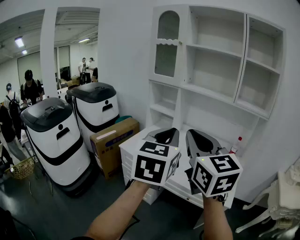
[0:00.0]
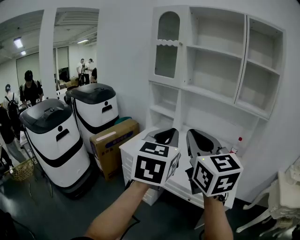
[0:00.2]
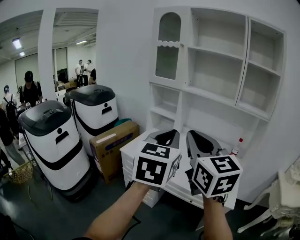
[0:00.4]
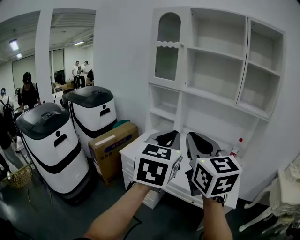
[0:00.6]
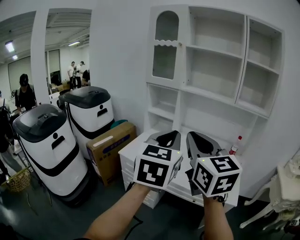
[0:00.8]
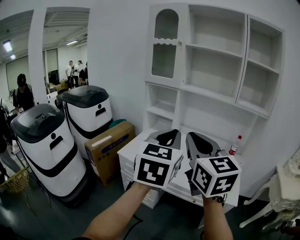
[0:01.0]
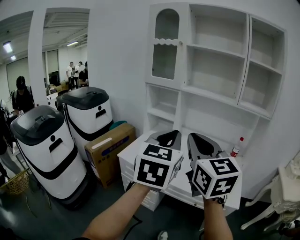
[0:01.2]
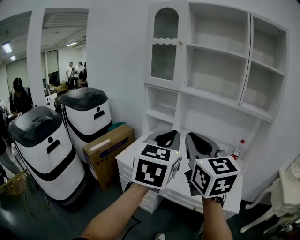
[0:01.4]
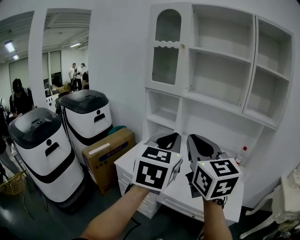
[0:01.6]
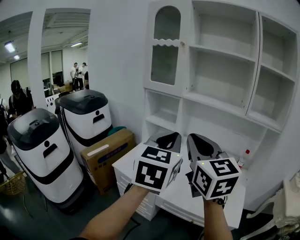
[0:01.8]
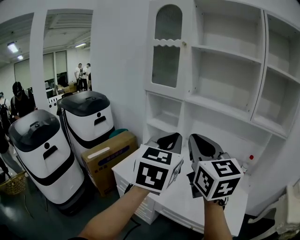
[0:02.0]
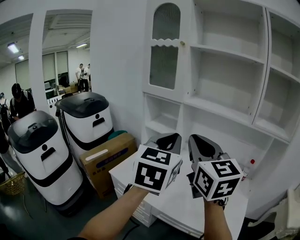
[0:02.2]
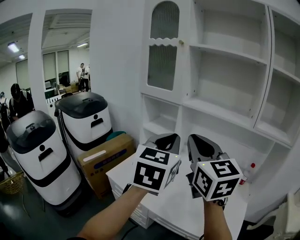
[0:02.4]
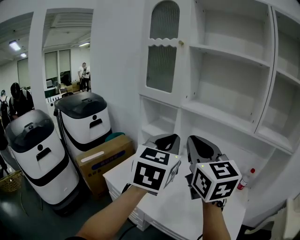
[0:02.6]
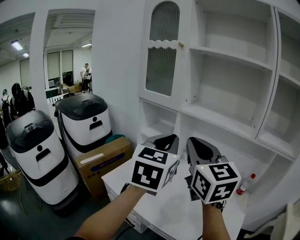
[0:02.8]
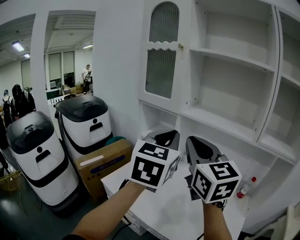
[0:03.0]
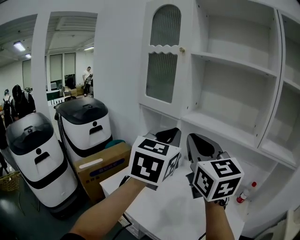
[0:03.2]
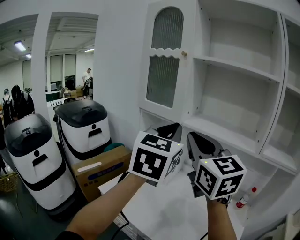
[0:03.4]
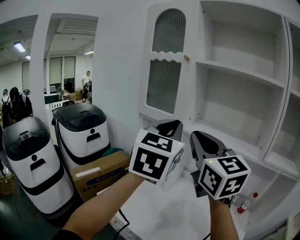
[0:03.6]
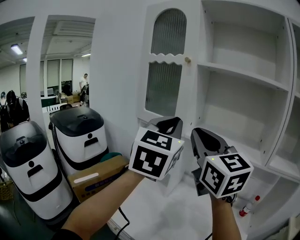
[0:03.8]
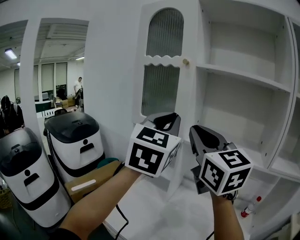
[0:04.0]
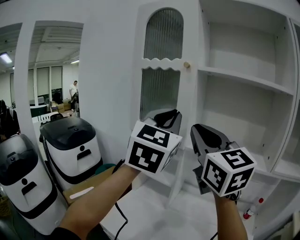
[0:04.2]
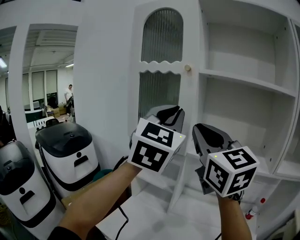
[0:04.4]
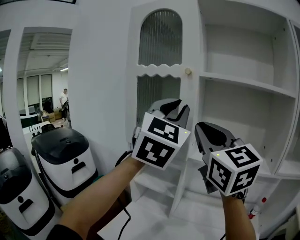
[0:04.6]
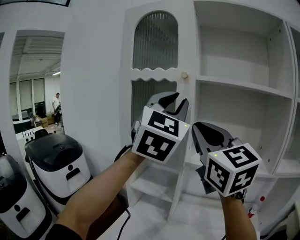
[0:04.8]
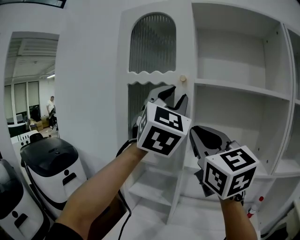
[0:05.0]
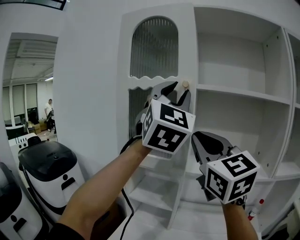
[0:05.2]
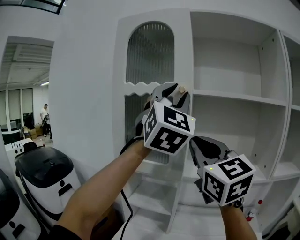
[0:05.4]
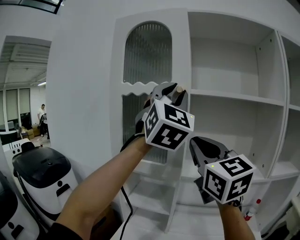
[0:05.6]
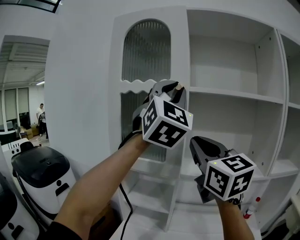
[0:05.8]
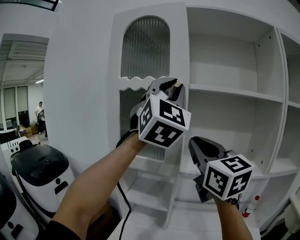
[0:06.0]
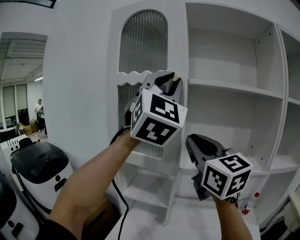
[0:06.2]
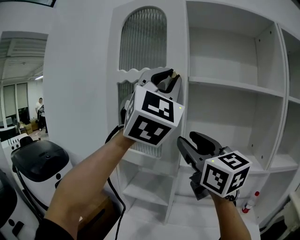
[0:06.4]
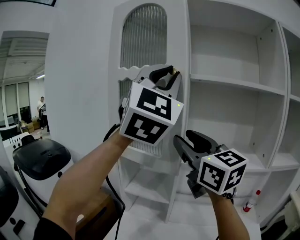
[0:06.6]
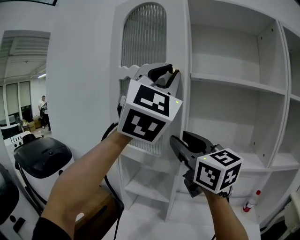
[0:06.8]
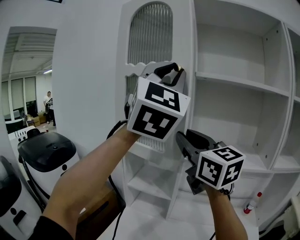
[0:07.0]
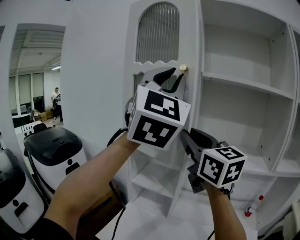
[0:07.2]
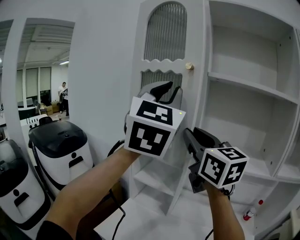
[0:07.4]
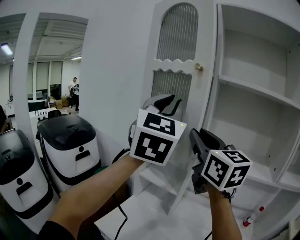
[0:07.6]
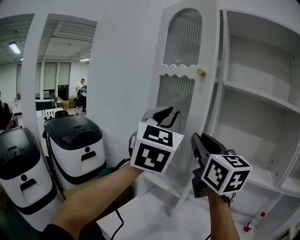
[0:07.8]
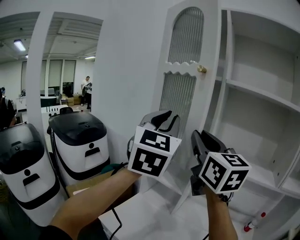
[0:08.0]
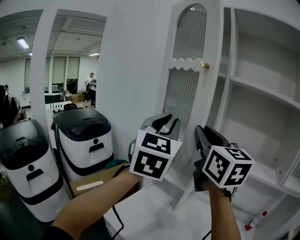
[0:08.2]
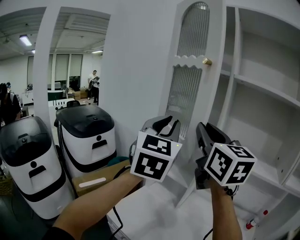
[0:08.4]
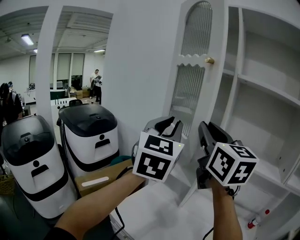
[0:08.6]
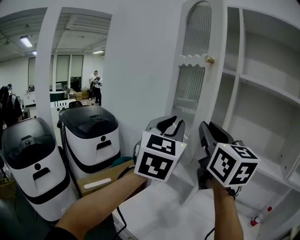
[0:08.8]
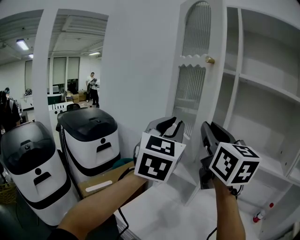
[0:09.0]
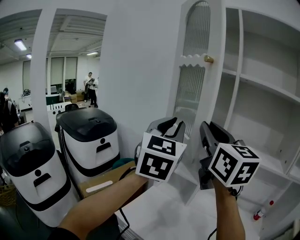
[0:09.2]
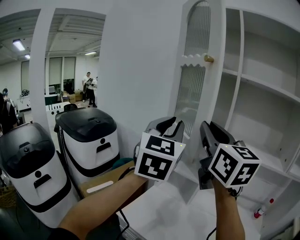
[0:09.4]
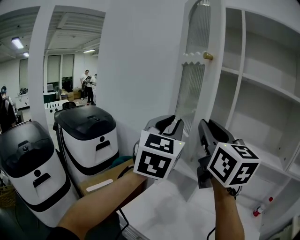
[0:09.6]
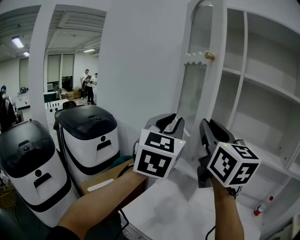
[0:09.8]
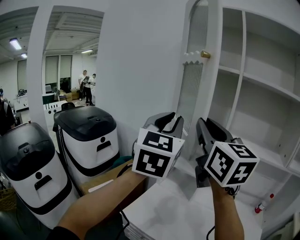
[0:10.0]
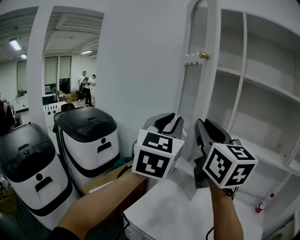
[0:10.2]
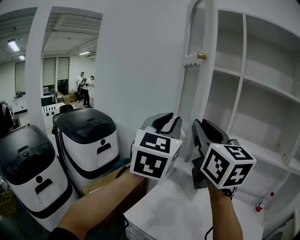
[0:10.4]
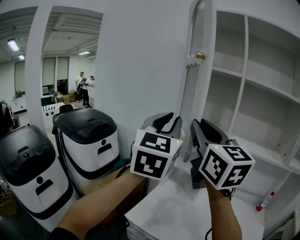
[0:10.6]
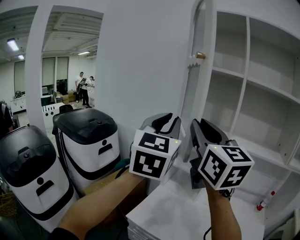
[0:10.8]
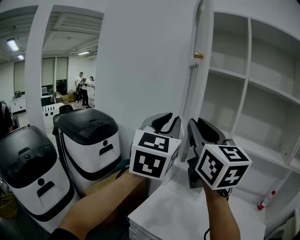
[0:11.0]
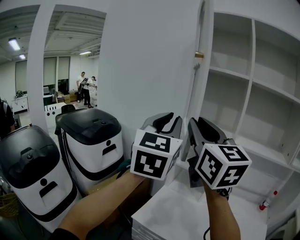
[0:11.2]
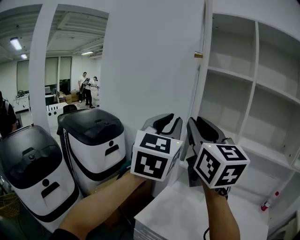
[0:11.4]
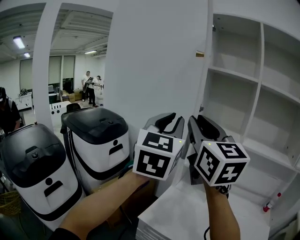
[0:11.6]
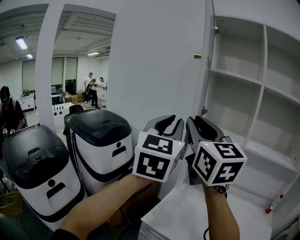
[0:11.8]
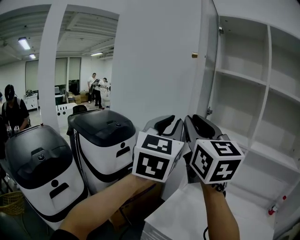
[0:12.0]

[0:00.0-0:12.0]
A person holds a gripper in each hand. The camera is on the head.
0:00.0 to 0:01.6: Both grippers travel together forward, about 10 cm.
0:01.6 to 0:03.0: The grippers both shift forward by approximately 20 cm.
0:03.0 to 0:04.4: Both grippers travel together forward and upward, some 20 cm. The left gripper swivels approximately 30 degrees.
0:04.4 to 0:06.0: The right gripper is displaced forward by some 5 cm. Meanwhile the left gripper travels upward and forward by approximately 15 cm, and turns by roughly 20 degrees.
0:06.0 to 0:07.6: The right gripper moves to the left, about 5 cm, and opens and closes again. The left gripper goes about 15 cm downward, to the left and backward, and turns by roughly 30 degrees.
0:07.6 to 0:09.0: The right gripper travels to the left by about 5 cm, while the left gripper is displaced downward and to the left by approximately 10 cm.
0:09.0 to 0:10.4: The grippers both shift to the left by roughly 10 cm.
0:10.4 to 0:12.0: Both grippers move to the left, roughly 15 cm.

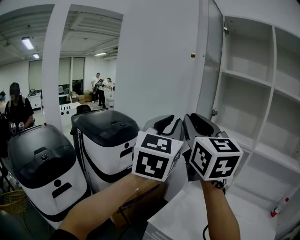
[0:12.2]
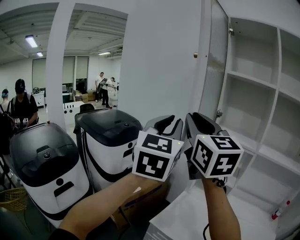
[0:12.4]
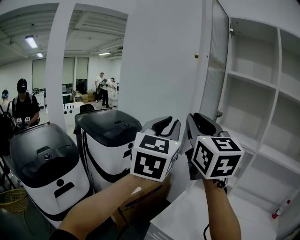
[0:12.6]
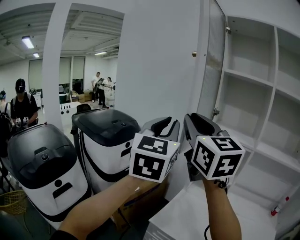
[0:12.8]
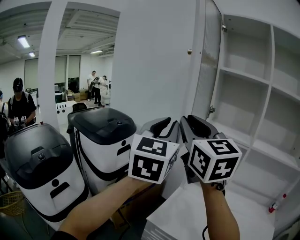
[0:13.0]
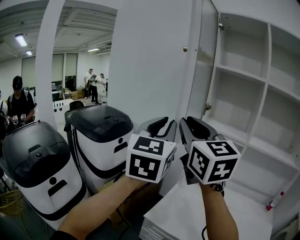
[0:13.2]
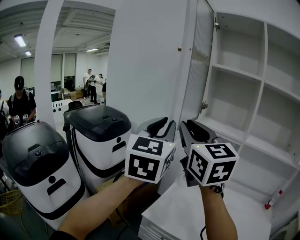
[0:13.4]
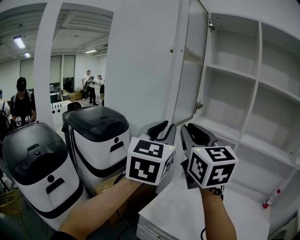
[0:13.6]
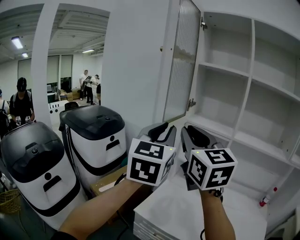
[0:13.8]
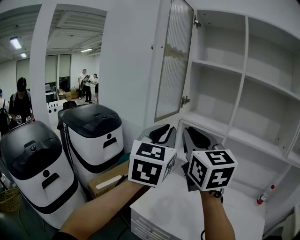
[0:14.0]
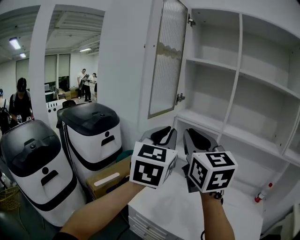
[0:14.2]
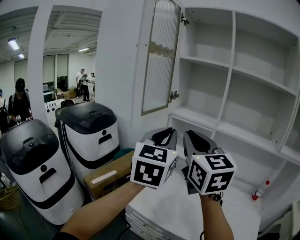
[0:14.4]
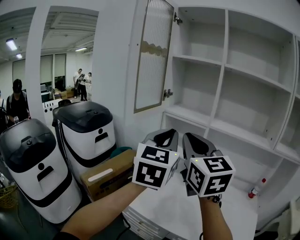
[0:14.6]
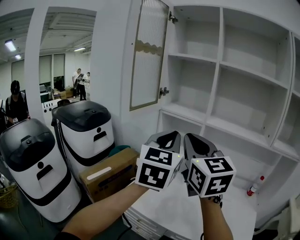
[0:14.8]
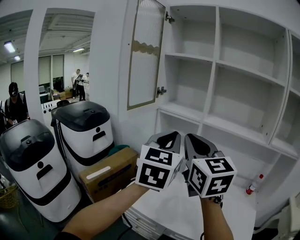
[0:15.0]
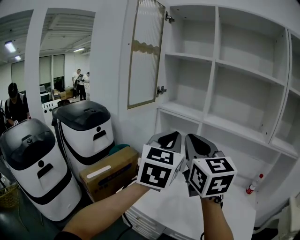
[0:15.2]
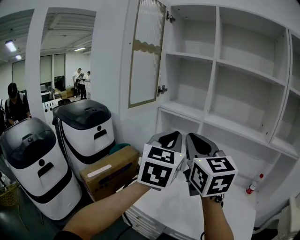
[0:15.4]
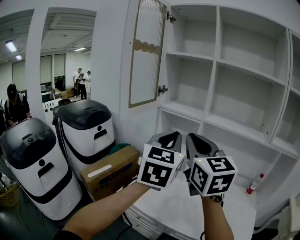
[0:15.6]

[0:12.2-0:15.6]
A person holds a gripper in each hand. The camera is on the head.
0:12.2 to 0:13.8: The left gripper shifts some 5 cm to the right. The right gripper travels to the right, backward and downward by about 10 cm.
0:13.8 to 0:15.6: The two grippers go roughly 20 cm to the right and backward.

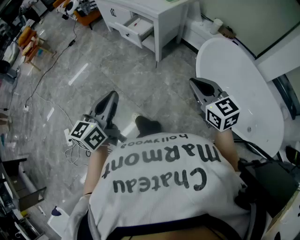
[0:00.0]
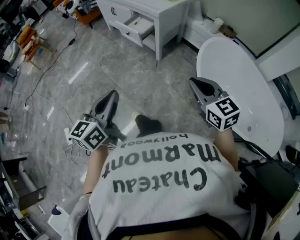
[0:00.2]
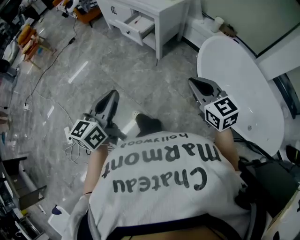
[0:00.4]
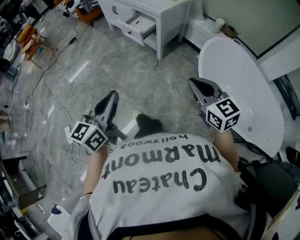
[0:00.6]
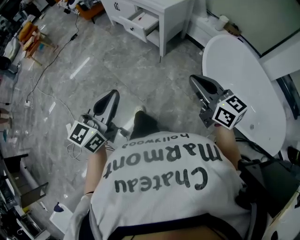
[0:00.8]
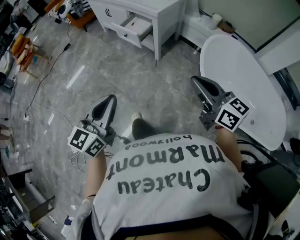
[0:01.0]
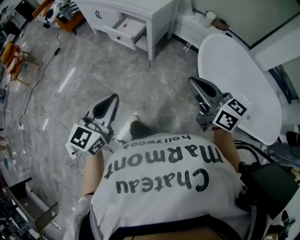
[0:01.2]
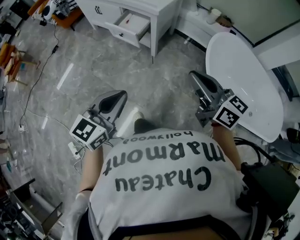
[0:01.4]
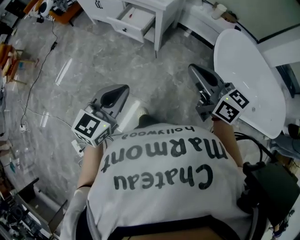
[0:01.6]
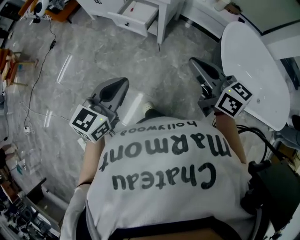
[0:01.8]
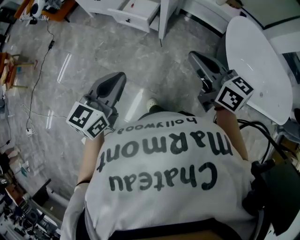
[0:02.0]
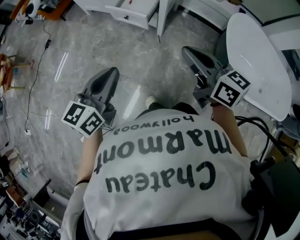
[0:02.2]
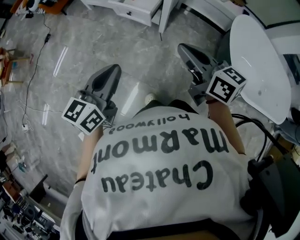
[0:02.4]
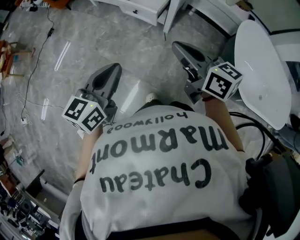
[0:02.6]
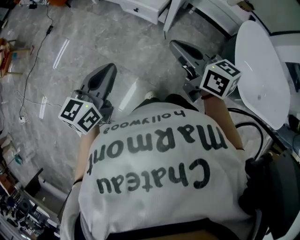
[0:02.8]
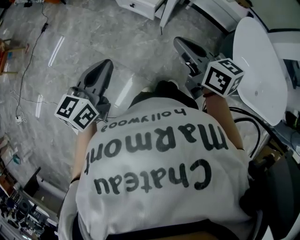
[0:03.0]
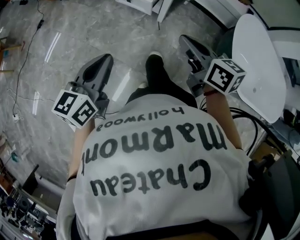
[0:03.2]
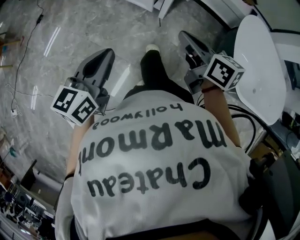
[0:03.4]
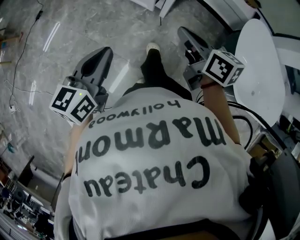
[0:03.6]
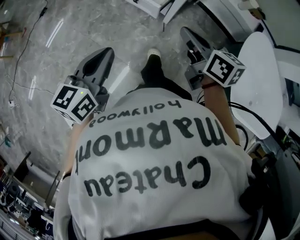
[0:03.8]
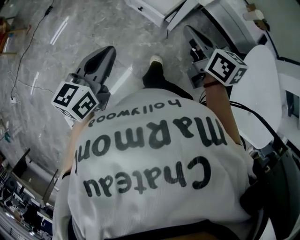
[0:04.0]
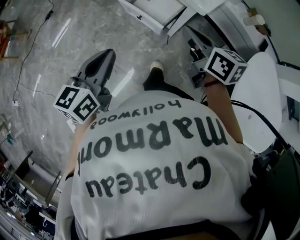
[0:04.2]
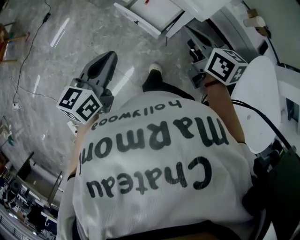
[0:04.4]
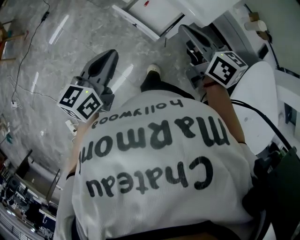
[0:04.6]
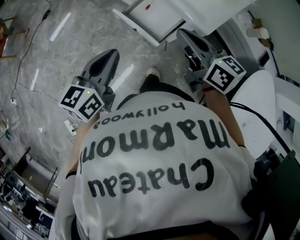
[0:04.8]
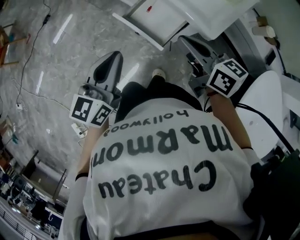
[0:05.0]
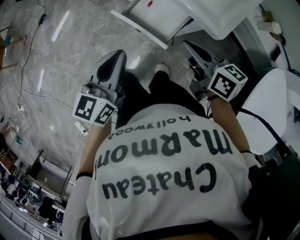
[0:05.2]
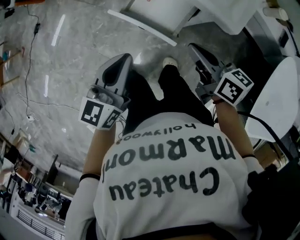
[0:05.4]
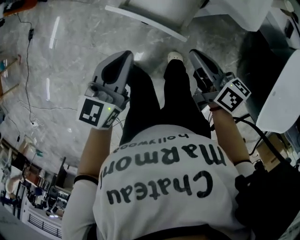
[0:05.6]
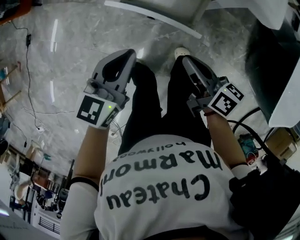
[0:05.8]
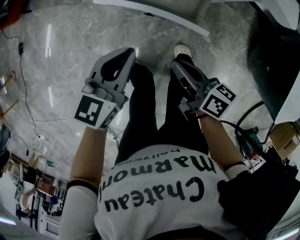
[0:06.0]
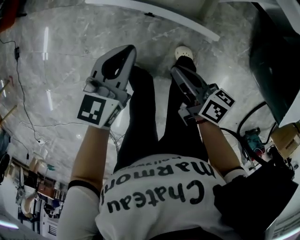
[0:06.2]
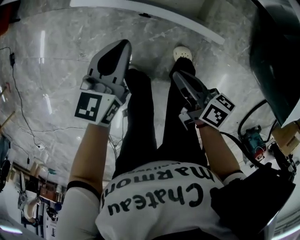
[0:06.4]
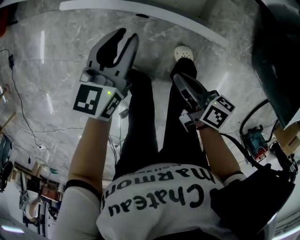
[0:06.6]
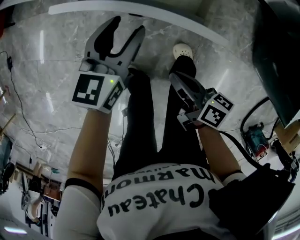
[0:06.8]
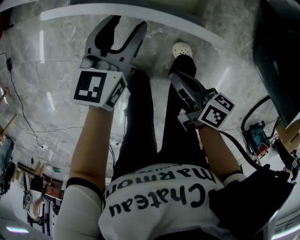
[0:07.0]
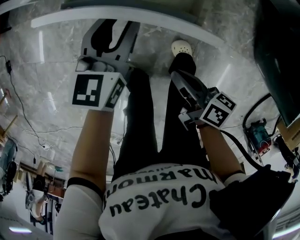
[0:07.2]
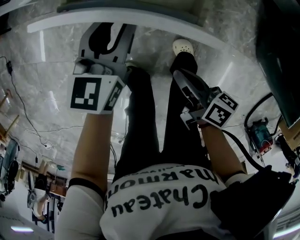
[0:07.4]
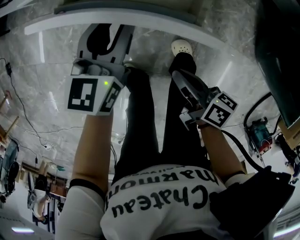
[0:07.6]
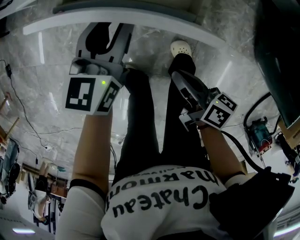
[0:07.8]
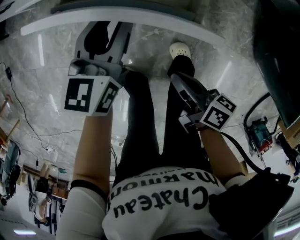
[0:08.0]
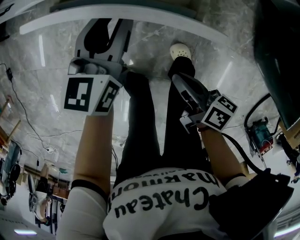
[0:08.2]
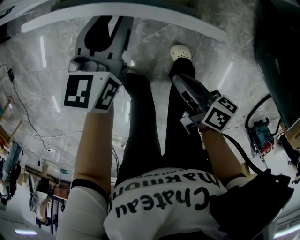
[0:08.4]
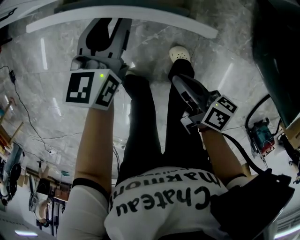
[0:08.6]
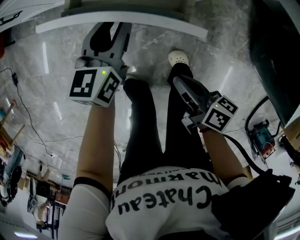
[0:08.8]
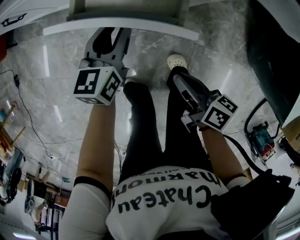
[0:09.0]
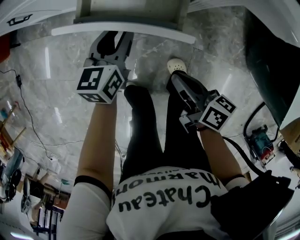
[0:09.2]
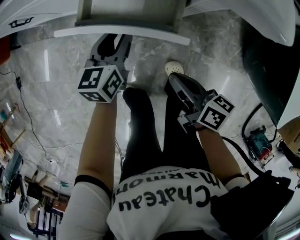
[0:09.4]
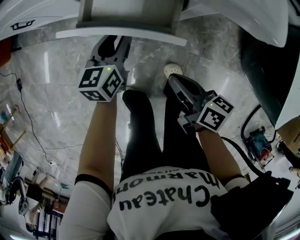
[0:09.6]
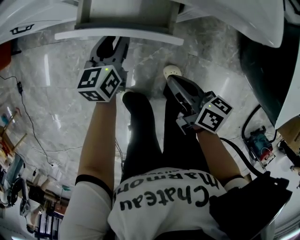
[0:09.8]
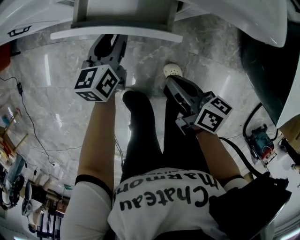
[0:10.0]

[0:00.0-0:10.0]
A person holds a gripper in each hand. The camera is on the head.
0:00.0 to 0:01.4: The right gripper moves to the left and forward, approximately 15 cm, and swivels some 30 degrees. The left gripper heads forward, covering some 10 cm, and changes its angle by roughly 30 degrees.
0:01.4 to 0:02.8: Both grippers move to the left and forward, some 20 cm.
0:02.8 to 0:04.2: The grippers both shift forward by some 20 cm.
0:04.2 to 0:05.8: The right gripper is displaced downward and to the left by roughly 25 cm, and changes its angle by about 30 degrees; the left gripper heads downward and forward, covering roughly 25 cm, and turns by about 30 degrees.
0:05.8 to 0:07.2: The left gripper travels downward and forward by about 15 cm, and opens; the right gripper moves downward and backward, roughly 15 cm.
0:07.2 to 0:08.6: The grippers make only small movements.
0:08.6 to 0:10.0: The right gripper goes roughly 10 cm forward and upward, while the left gripper shifts by about 5 cm.
